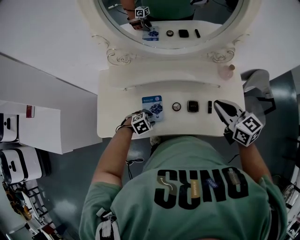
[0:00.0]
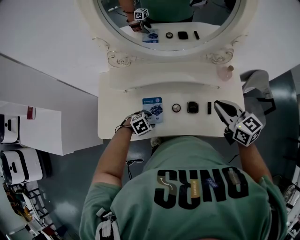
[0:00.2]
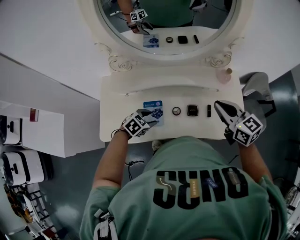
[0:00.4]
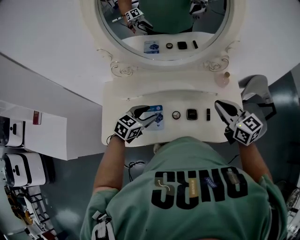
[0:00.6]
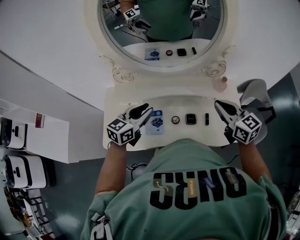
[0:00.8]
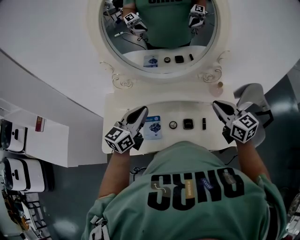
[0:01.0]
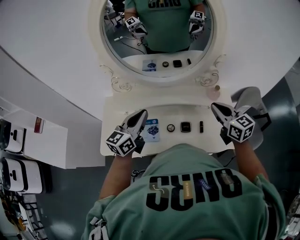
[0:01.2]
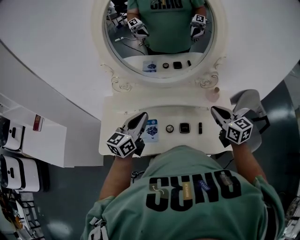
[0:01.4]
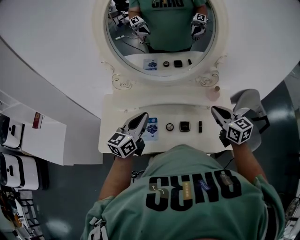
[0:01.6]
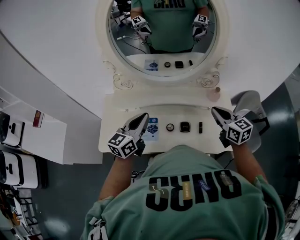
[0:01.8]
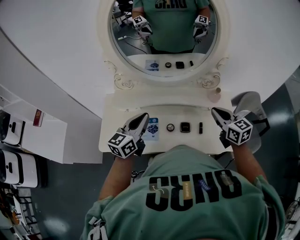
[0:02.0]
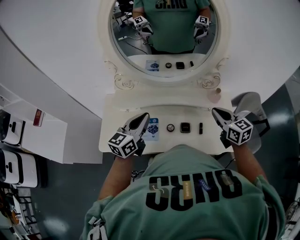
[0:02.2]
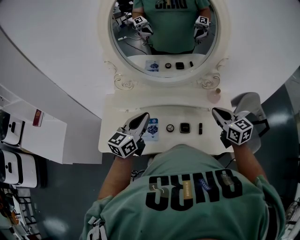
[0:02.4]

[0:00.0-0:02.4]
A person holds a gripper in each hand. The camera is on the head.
0:00.0 to 0:01.2: The left gripper shifts some 35 cm upward, tips its fingers upward by some 70 degrees, and closes its fingers. The right gripper moves some 10 cm.
0:01.2 to 0:02.4: There are only small adjustments of the grippers.

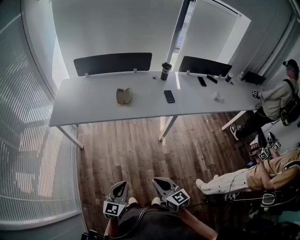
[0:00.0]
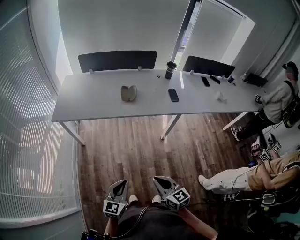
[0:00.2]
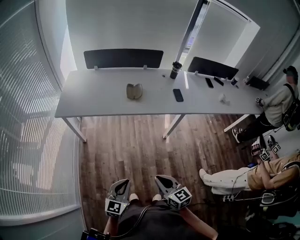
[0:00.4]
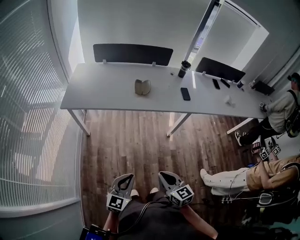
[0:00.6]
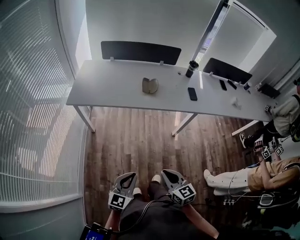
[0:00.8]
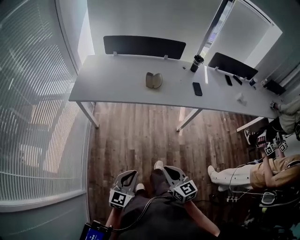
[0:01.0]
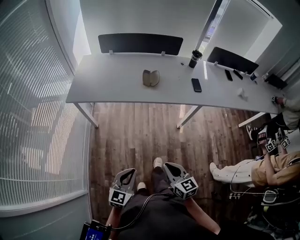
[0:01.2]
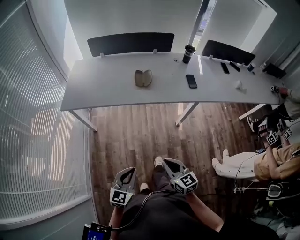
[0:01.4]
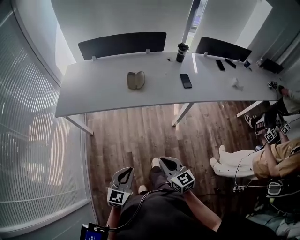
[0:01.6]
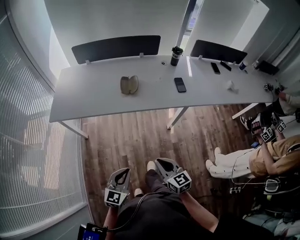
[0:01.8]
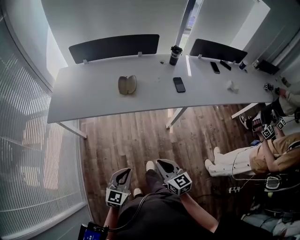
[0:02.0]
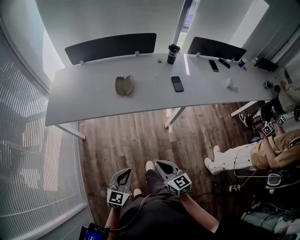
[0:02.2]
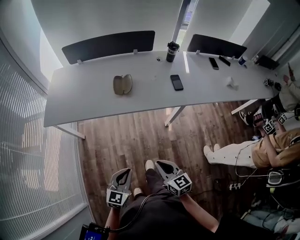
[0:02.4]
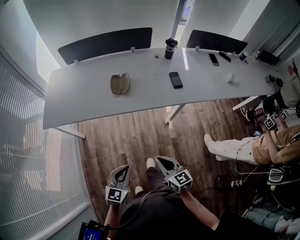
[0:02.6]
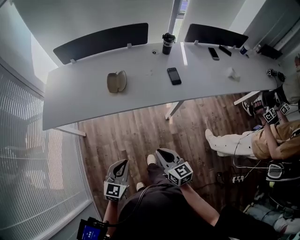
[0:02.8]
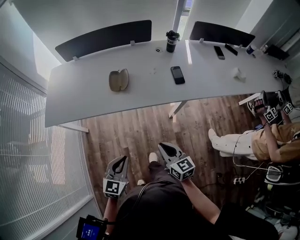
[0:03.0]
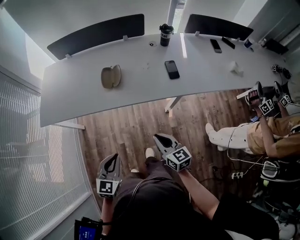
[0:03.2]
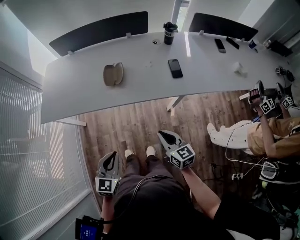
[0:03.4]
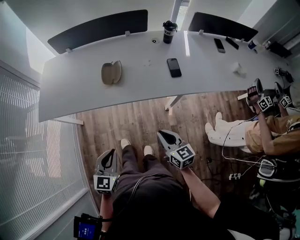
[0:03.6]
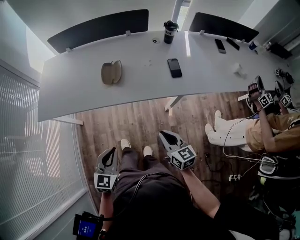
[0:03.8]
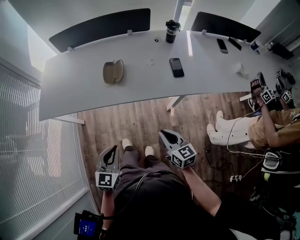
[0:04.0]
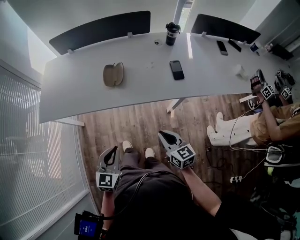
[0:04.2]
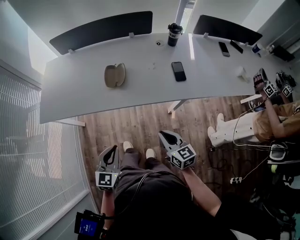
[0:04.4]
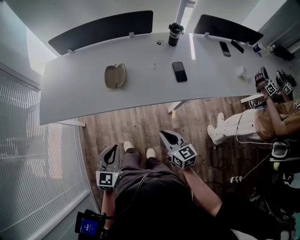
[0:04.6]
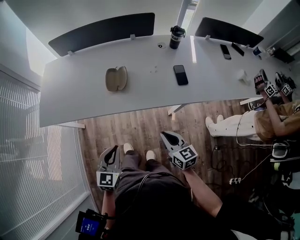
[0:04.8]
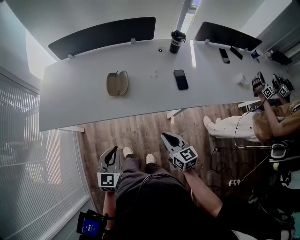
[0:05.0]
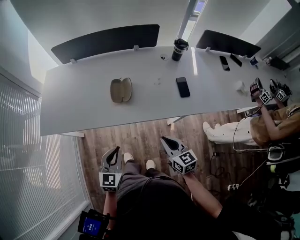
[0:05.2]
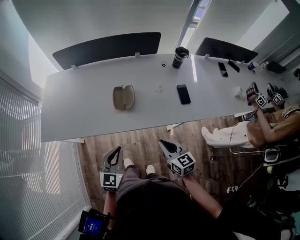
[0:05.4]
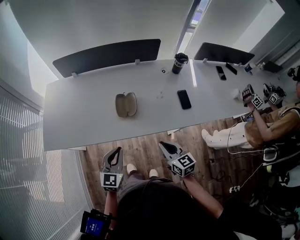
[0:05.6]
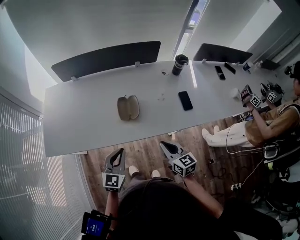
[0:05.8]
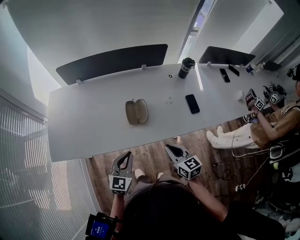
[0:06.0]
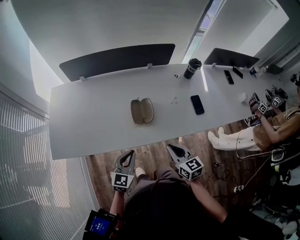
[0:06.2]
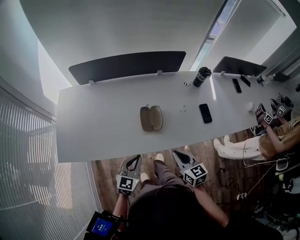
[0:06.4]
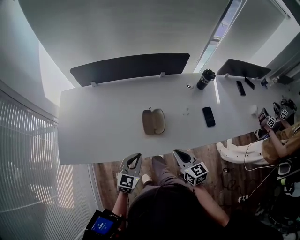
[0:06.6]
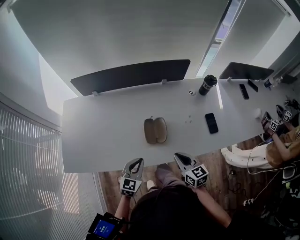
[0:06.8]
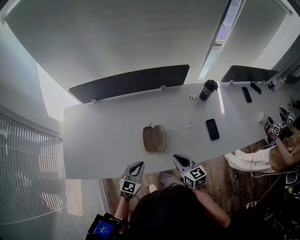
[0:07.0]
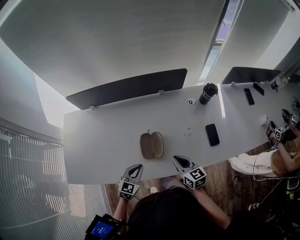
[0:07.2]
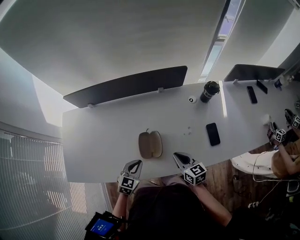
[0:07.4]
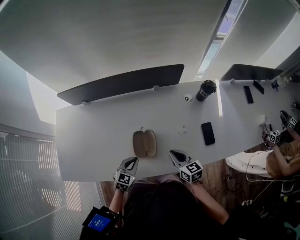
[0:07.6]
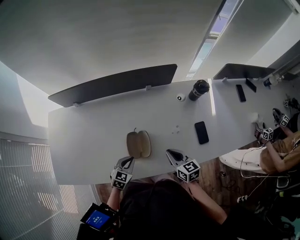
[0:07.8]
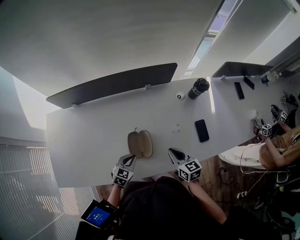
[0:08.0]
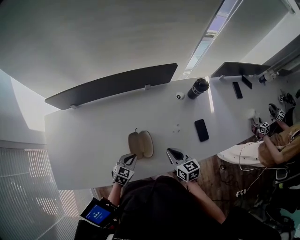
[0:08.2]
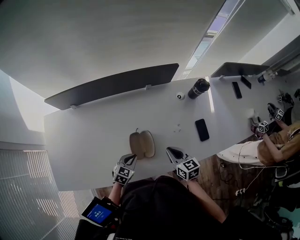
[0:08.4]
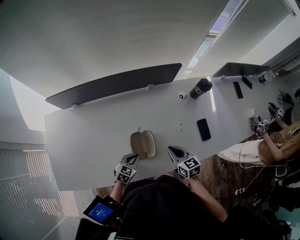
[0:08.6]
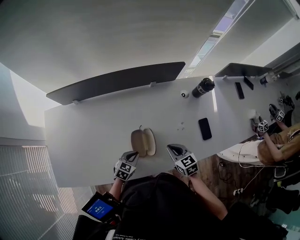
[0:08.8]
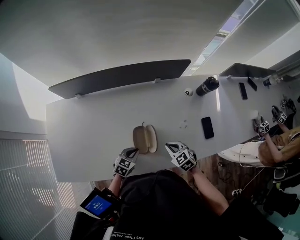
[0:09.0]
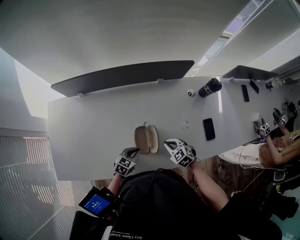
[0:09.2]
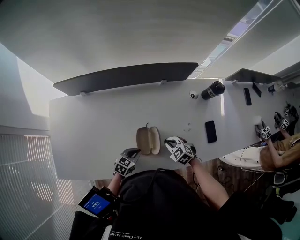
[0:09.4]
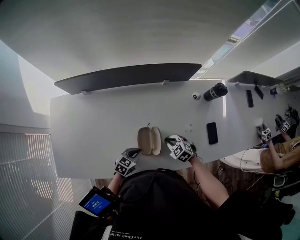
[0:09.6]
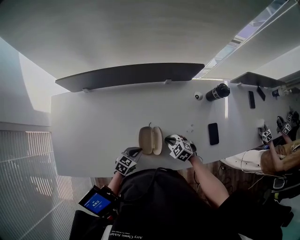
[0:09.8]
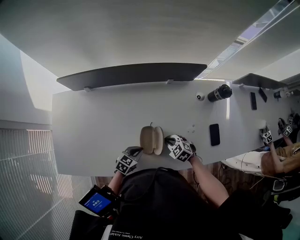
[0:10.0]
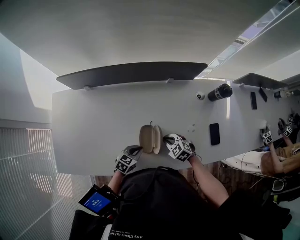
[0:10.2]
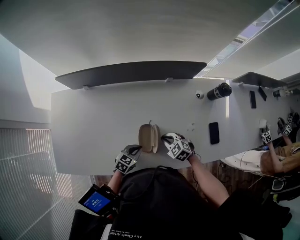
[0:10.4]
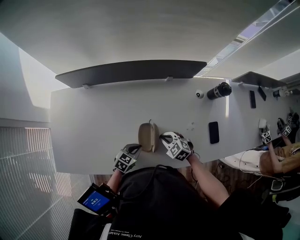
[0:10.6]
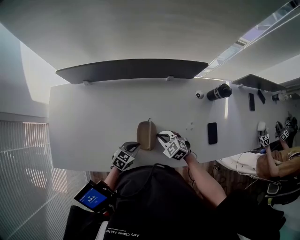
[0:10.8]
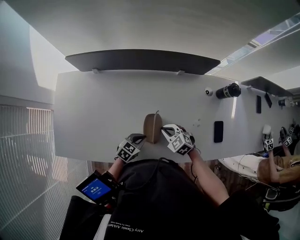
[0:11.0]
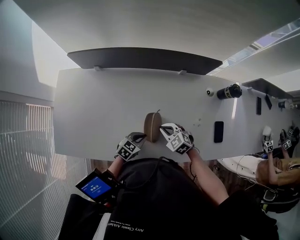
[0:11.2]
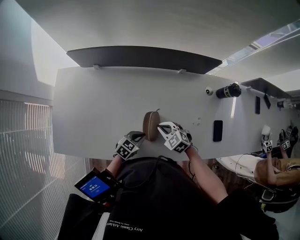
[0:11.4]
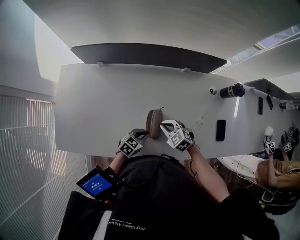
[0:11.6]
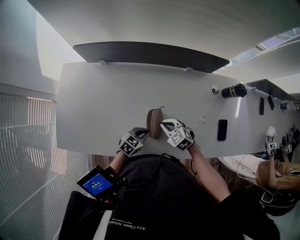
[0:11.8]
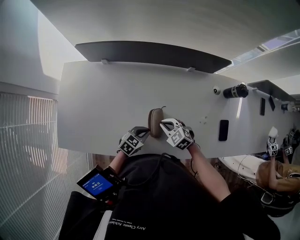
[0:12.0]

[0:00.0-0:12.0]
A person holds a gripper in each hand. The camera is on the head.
0:00.0 to 0:01.6: The right gripper travels forward by about 10 cm. The left gripper moves forward, roughly 5 cm.
0:01.6 to 0:03.0: Both grippers move forward and to the right, approximately 15 cm.
0:03.0 to 0:04.4: The grippers both shift forward by about 5 cm.
0:04.4 to 0:06.0: Both grippers travel together forward and to the left, approximately 20 cm.
0:06.0 to 0:07.6: The left gripper is displaced forward and downward by about 20 cm, and turns by approximately 20 degrees; the right gripper is displaced forward by some 20 cm.
0:07.6 to 0:09.0: The right gripper heads downward and to the left, covering approximately 10 cm, and turns by about 40 degrees. Meanwhile the left gripper is displaced downward by roughly 5 cm.
0:09.0 to 0:10.4: The right gripper travels to the left by roughly 5 cm.
0:10.4 to 0:12.0: The right gripper moves some 10 cm.

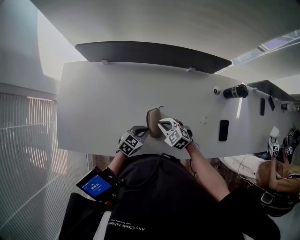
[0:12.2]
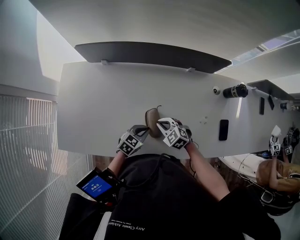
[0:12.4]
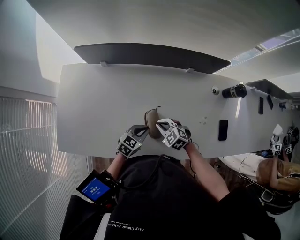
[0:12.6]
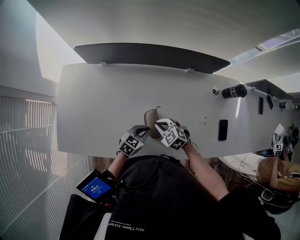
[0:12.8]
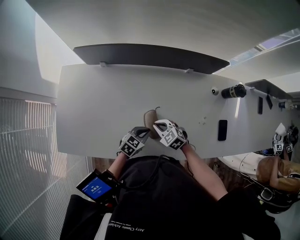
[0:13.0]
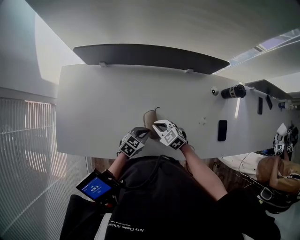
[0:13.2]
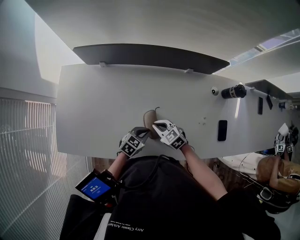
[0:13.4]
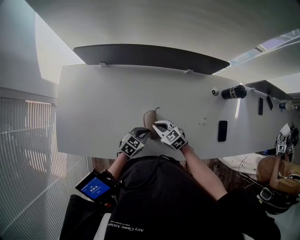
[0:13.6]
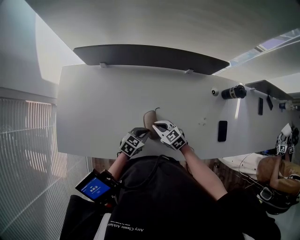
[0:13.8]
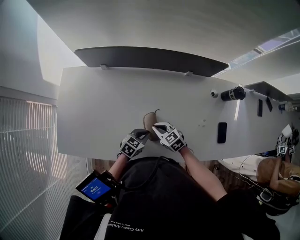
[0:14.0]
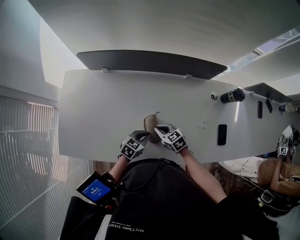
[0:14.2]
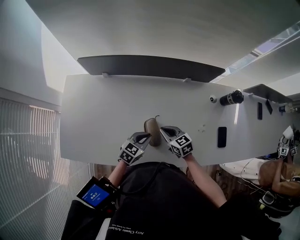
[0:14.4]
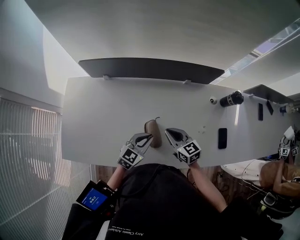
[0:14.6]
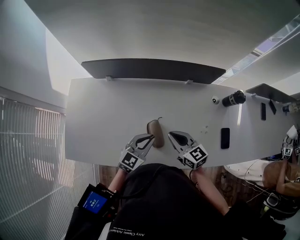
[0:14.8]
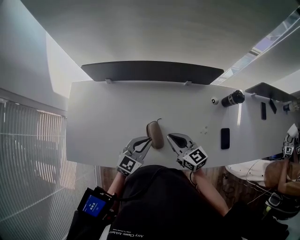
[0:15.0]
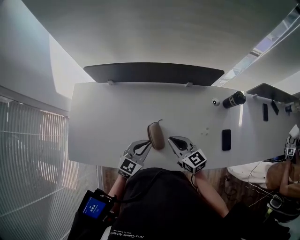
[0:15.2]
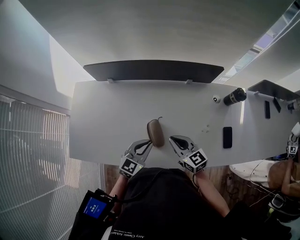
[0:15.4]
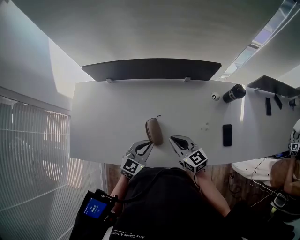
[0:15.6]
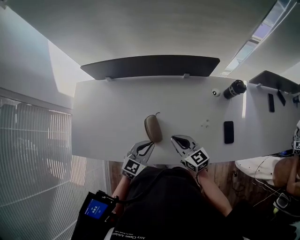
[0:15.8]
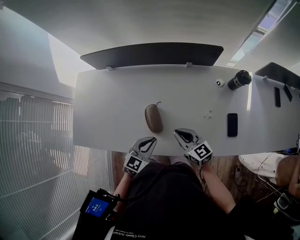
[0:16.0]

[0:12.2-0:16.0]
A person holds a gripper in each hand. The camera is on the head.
0:12.2 to 0:13.4: The grippers stay close to where they were, moving slightly.
0:13.4 to 0:14.8: The grippers both shift upward by some 15 cm. The right gripper rotates some 30 degrees. Meanwhile the left gripper turns by roughly 30 degrees.
0:14.8 to 0:16.0: The left gripper is displaced backward by approximately 10 cm. Meanwhile the right gripper is displaced to the right and backward by approximately 10 cm.

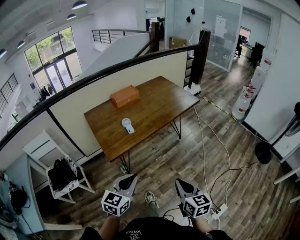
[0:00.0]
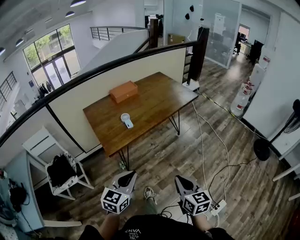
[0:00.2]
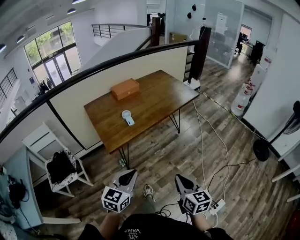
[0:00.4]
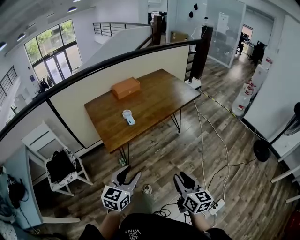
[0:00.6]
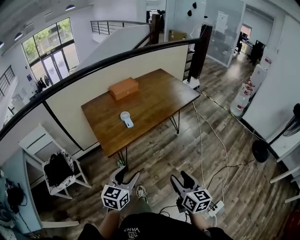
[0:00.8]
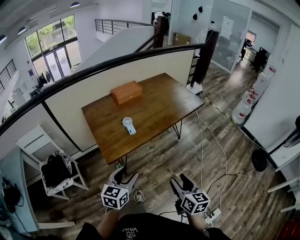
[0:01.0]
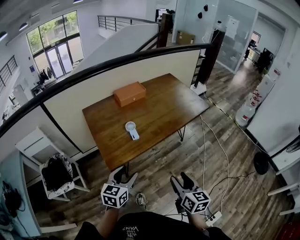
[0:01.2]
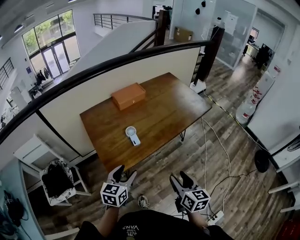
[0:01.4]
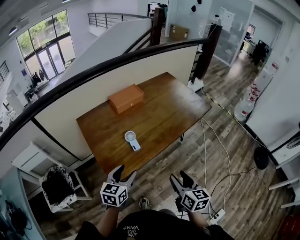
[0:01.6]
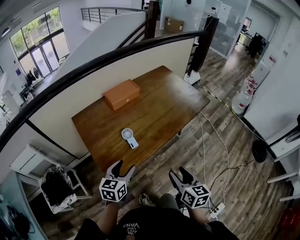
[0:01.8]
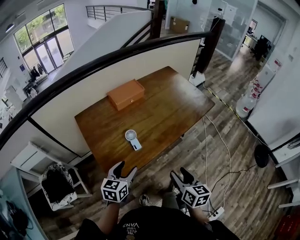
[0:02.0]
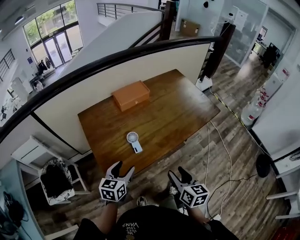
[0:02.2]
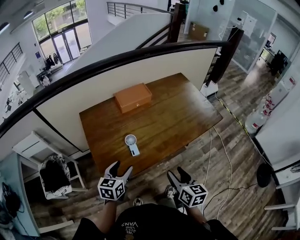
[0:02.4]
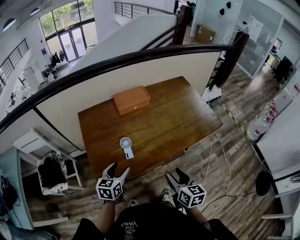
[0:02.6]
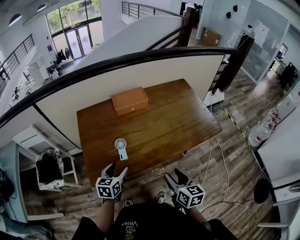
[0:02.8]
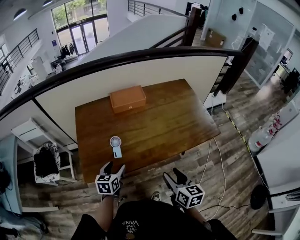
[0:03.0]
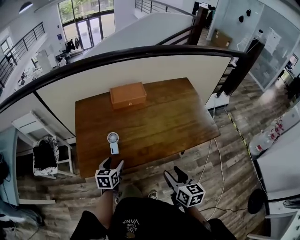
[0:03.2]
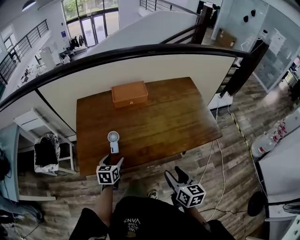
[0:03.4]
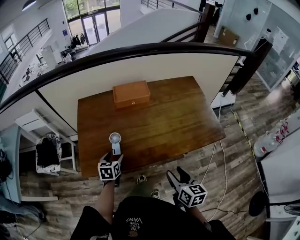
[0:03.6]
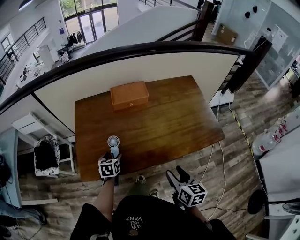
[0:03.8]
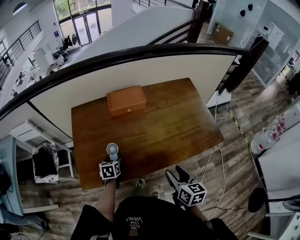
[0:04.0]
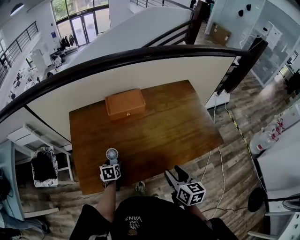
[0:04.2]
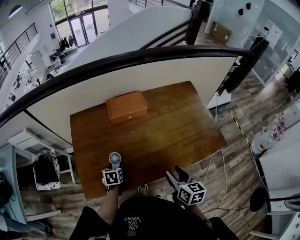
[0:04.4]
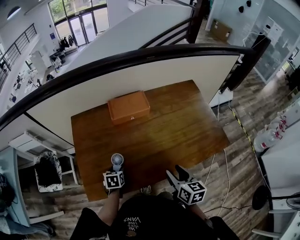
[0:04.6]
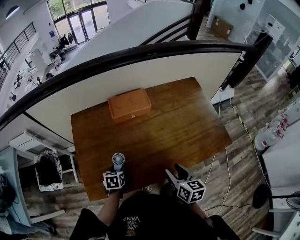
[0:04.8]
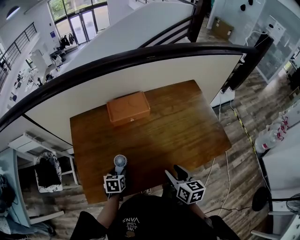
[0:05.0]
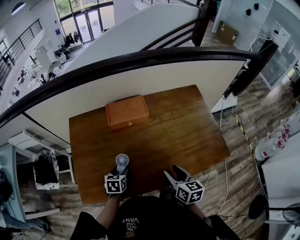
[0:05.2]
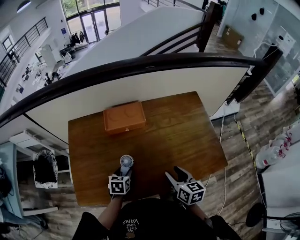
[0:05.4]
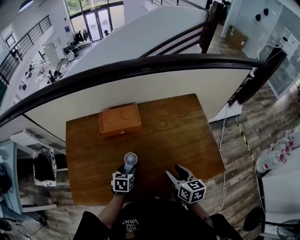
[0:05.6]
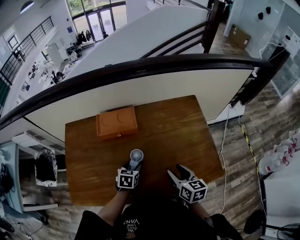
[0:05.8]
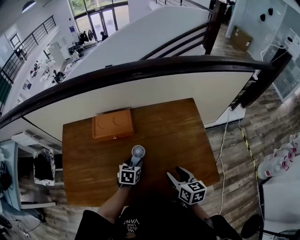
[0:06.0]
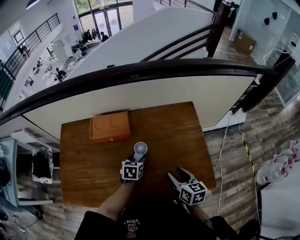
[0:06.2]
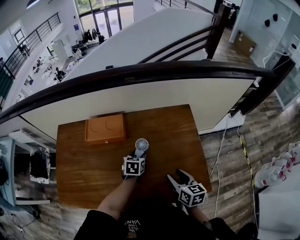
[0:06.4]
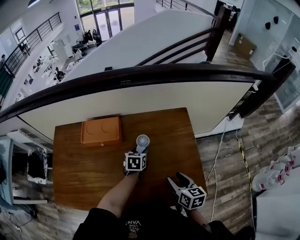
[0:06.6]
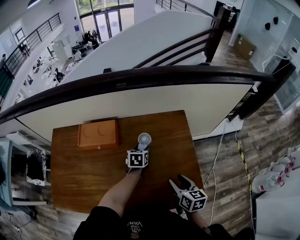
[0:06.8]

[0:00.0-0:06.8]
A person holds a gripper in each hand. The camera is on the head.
0:00.0 to 0:01.4: The right gripper heads forward, covering approximately 20 cm, and opens. The left gripper goes about 25 cm forward and to the left, and opens up.
0:01.4 to 0:02.8: The left gripper shifts approximately 15 cm forward and downward, and changes its angle by some 20 degrees, while the right gripper moves forward and to the right, approximately 20 cm.
0:02.8 to 0:04.0: The right gripper moves forward and to the right, some 10 cm, while the left gripper goes about 15 cm downward and forward, and swivels roughly 30 degrees.
0:04.0 to 0:05.4: The left gripper shifts approximately 10 cm to the right and forward, while the right gripper travels forward by about 15 cm.
0:05.4 to 0:06.8: The right gripper moves to the right and forward, some 25 cm, while the left gripper moves to the right and forward, roughly 35 cm.
